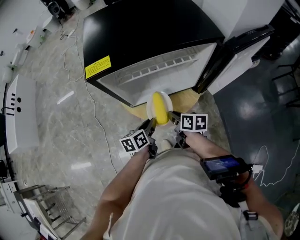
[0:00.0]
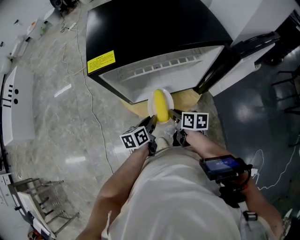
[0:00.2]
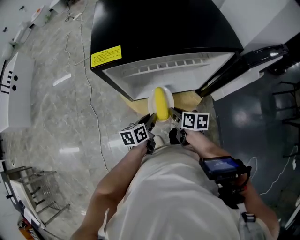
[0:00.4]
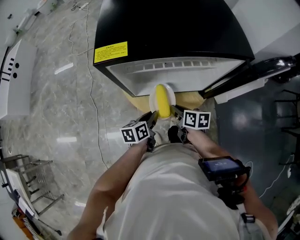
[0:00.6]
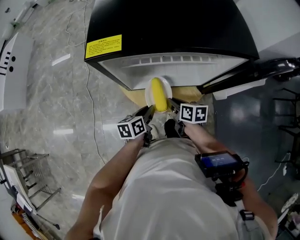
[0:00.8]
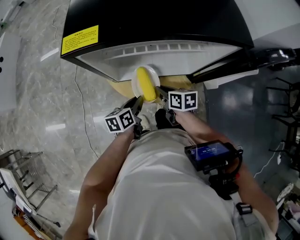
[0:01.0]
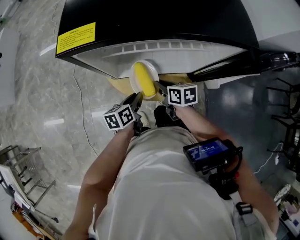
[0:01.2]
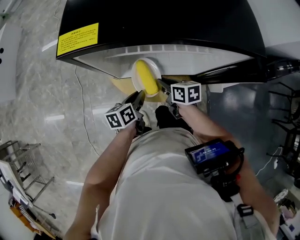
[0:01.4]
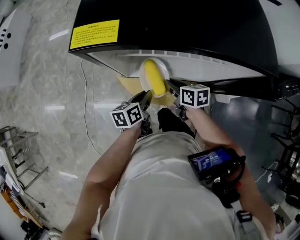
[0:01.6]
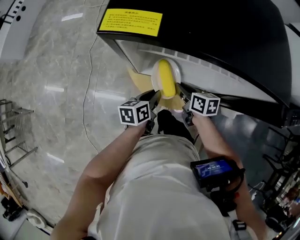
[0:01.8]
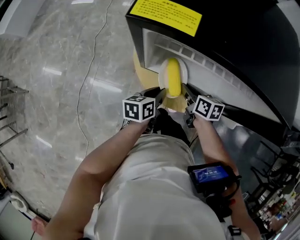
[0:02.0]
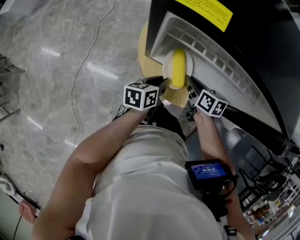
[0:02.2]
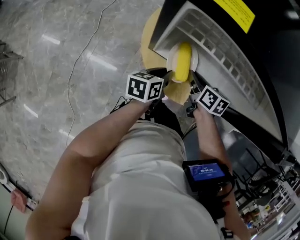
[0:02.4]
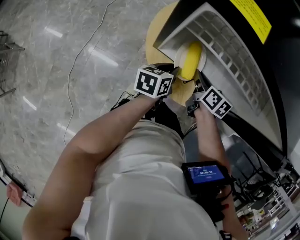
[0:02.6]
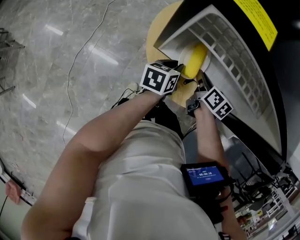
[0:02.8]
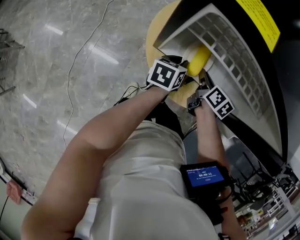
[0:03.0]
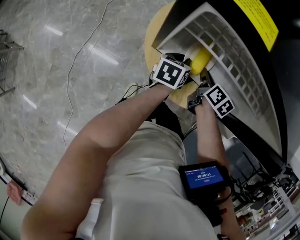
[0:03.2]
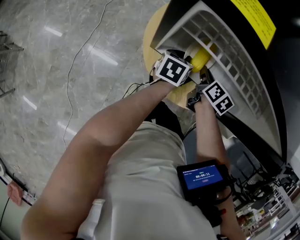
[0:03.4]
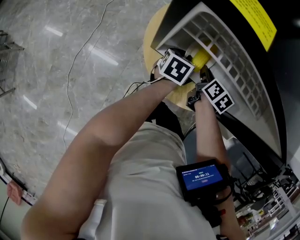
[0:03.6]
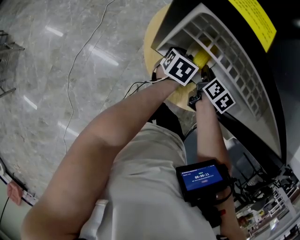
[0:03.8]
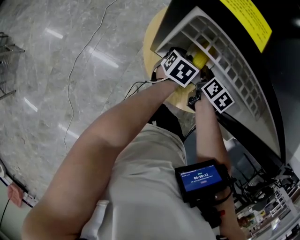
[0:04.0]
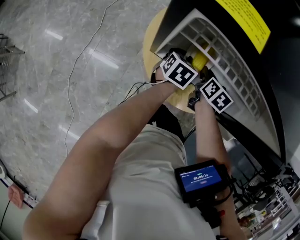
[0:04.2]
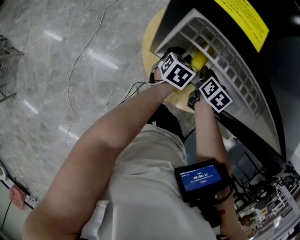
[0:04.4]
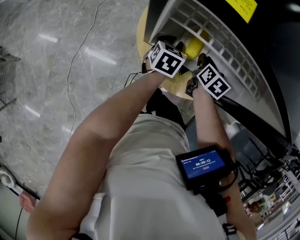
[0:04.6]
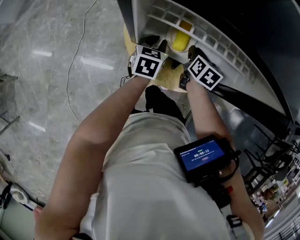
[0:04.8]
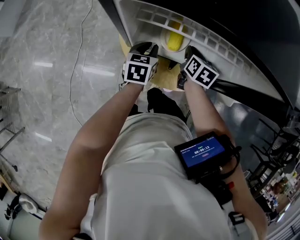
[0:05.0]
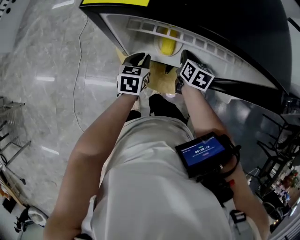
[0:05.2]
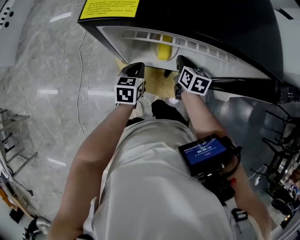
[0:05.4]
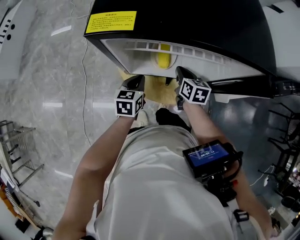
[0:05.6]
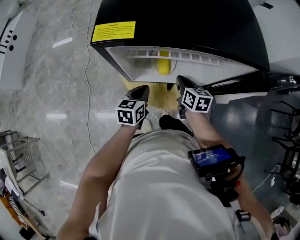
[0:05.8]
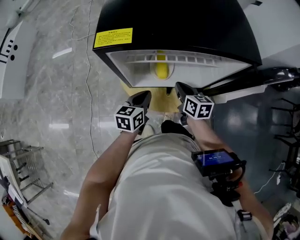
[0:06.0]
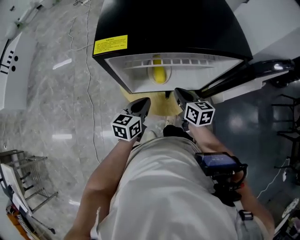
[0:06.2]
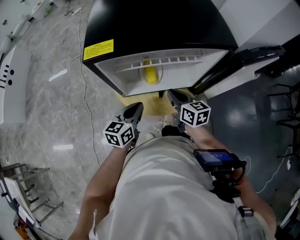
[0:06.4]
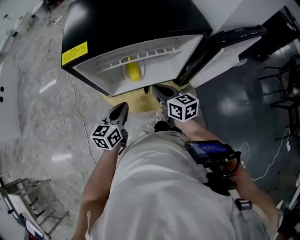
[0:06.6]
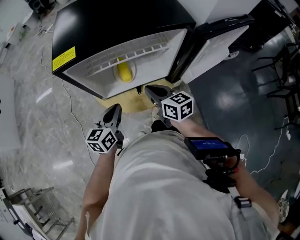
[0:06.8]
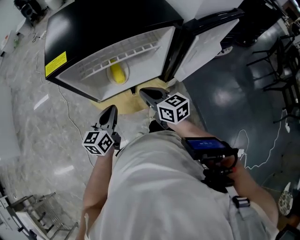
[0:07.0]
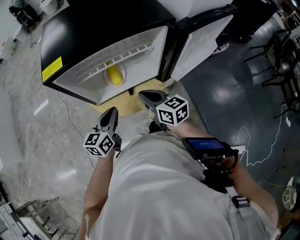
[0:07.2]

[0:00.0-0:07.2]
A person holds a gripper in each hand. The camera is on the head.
0:00.0 to 0:01.4: The left gripper changes place by roughly 5 cm; the right gripper heads forward, covering some 10 cm, and swivels some 20 degrees.
0:01.4 to 0:02.8: Both grippers travel together forward, roughly 5 cm.
0:02.8 to 0:04.4: The right gripper shifts by roughly 5 cm. The left gripper shifts some 5 cm forward, and turns by approximately 30 degrees.
0:04.4 to 0:05.8: Both grippers move backward and upward, about 10 cm. The right gripper closes its fingers.
0:05.8 to 0:07.2: The right gripper travels backward and upward by roughly 15 cm, while the left gripper goes about 10 cm upward and backward, and changes its angle by approximately 20 degrees.

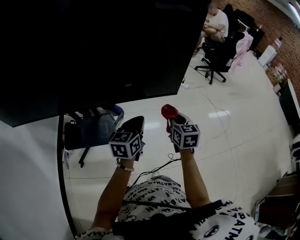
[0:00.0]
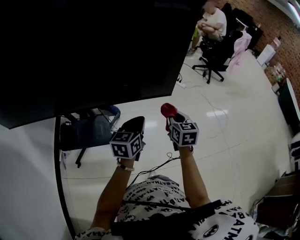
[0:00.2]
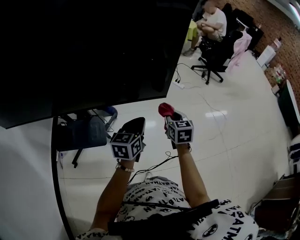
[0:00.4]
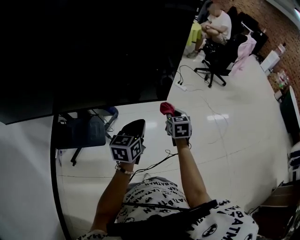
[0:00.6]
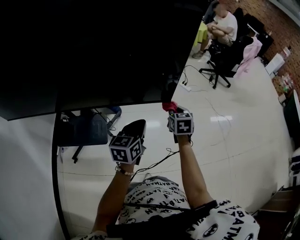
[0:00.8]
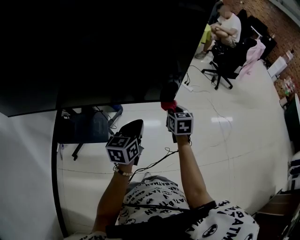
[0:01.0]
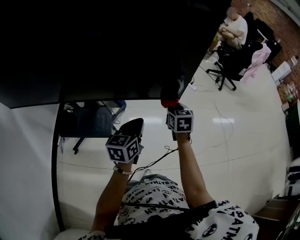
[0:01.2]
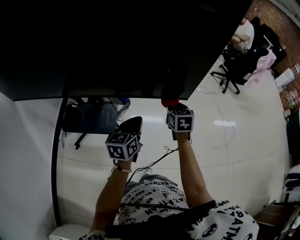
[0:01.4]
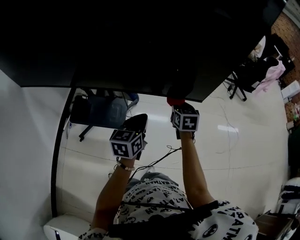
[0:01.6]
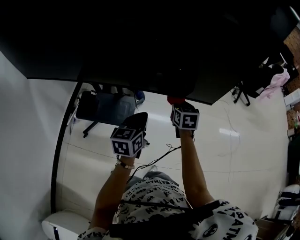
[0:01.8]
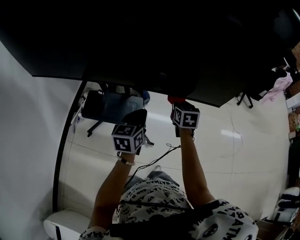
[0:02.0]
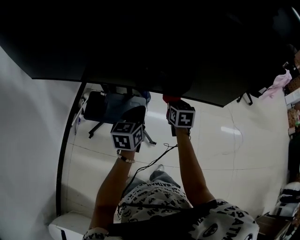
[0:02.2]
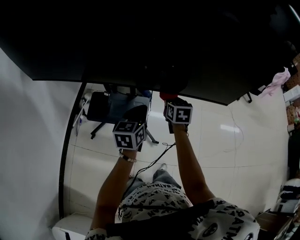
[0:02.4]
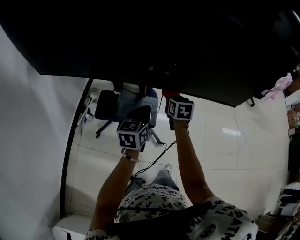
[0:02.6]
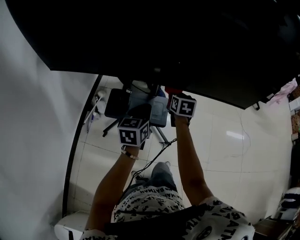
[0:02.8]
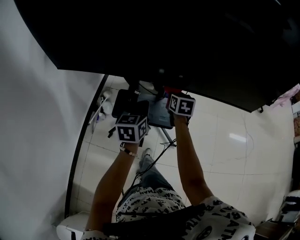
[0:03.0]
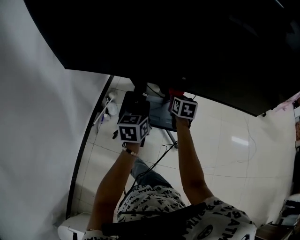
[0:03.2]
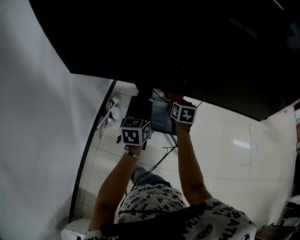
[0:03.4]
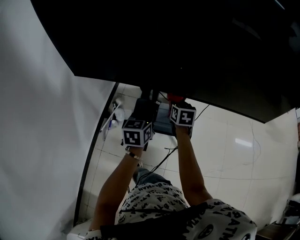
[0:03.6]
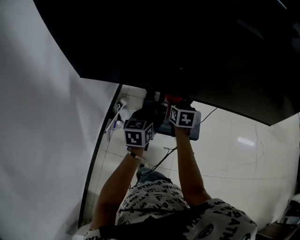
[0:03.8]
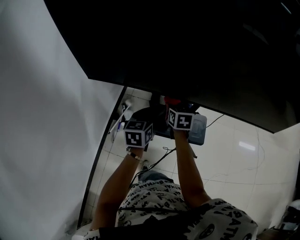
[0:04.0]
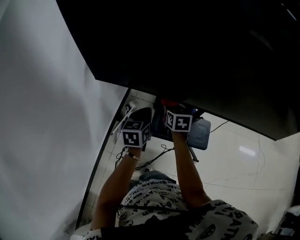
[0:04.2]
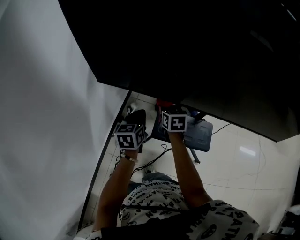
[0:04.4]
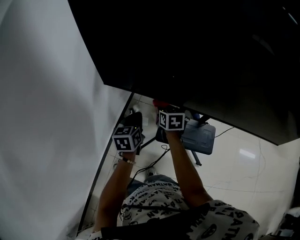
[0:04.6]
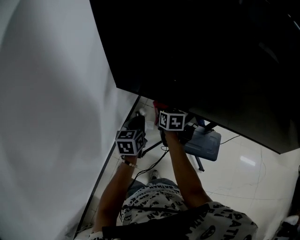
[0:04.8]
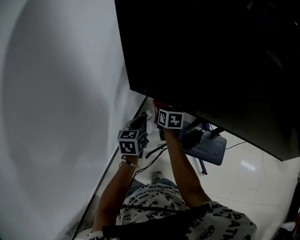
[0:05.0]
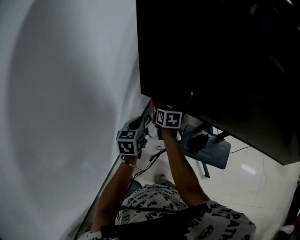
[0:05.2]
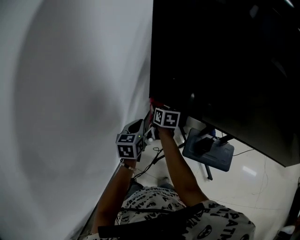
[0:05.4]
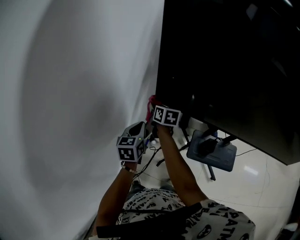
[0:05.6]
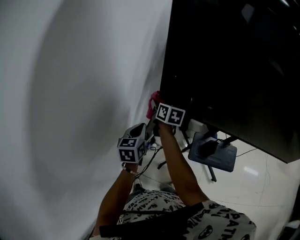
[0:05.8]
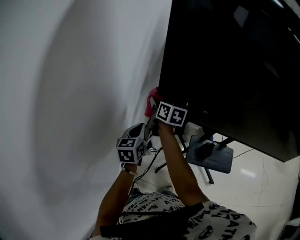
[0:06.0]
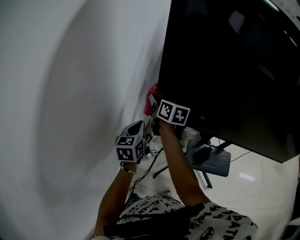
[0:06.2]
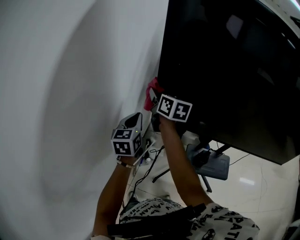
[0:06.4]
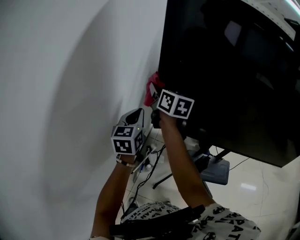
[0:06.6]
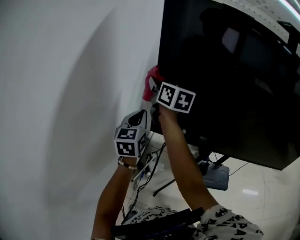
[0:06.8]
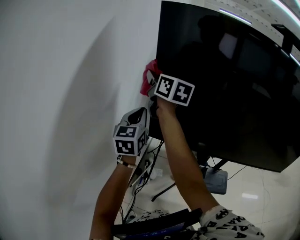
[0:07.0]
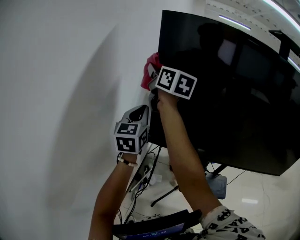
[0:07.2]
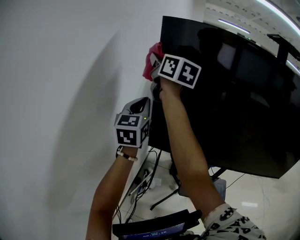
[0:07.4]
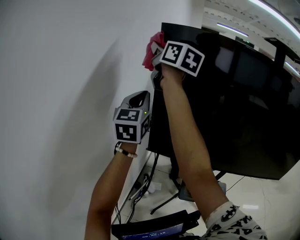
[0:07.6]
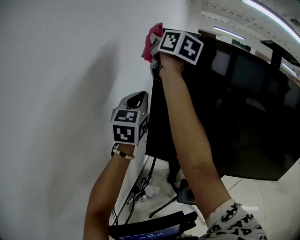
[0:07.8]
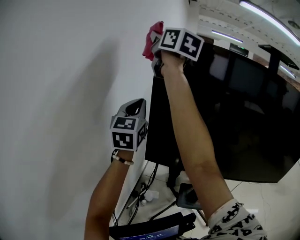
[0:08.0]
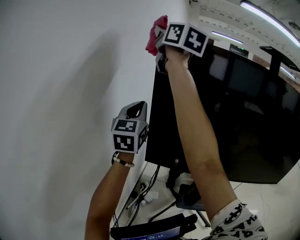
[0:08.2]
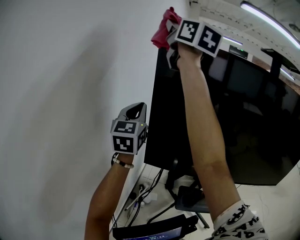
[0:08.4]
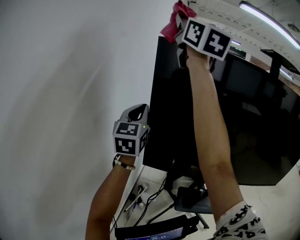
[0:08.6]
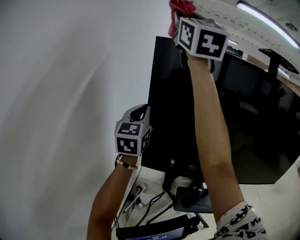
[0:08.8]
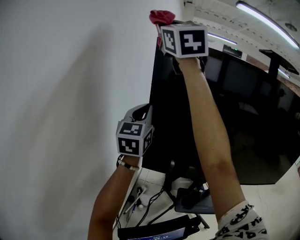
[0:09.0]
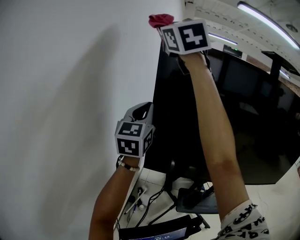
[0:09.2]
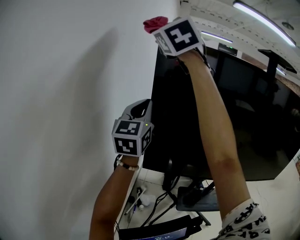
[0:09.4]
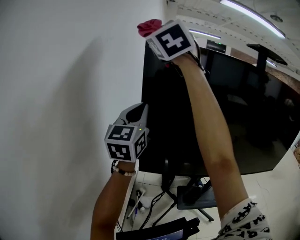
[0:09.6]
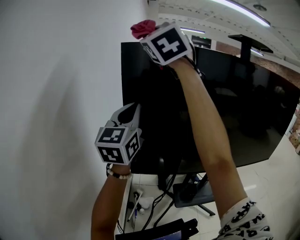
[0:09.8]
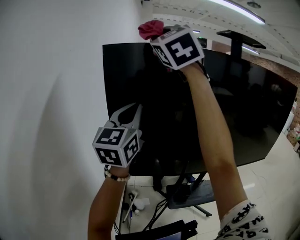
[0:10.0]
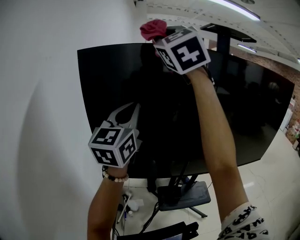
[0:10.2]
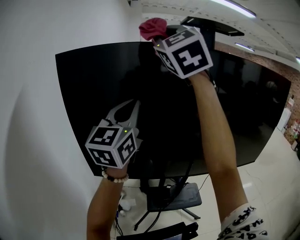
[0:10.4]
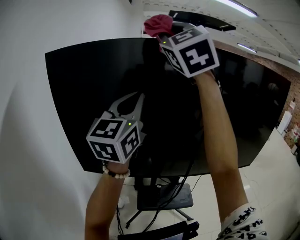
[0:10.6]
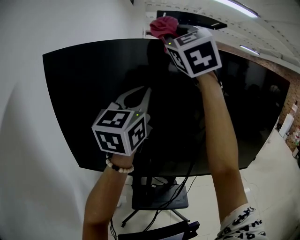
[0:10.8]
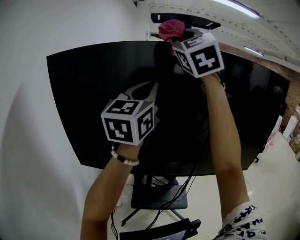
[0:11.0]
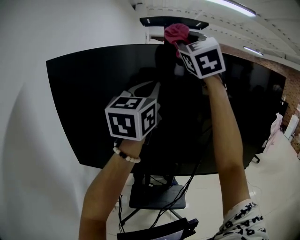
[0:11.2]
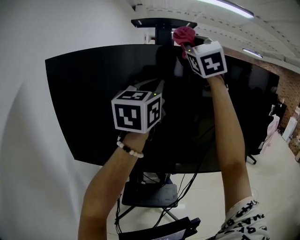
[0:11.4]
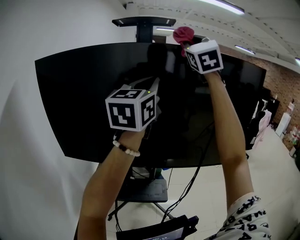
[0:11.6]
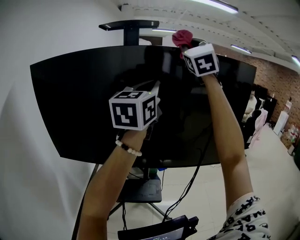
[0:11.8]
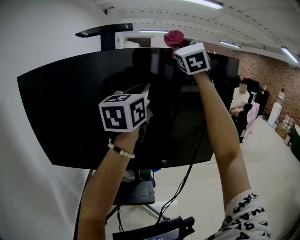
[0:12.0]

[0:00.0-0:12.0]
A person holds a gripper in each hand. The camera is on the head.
0:00.0 to 0:01.6: The left gripper shifts approximately 5 cm to the left; the right gripper shifts about 10 cm forward and to the left.
0:01.6 to 0:03.0: Both grippers travel together to the left, approximately 35 cm.
0:03.0 to 0:04.4: Both grippers travel together to the left, approximately 30 cm.
0:04.4 to 0:06.0: The right gripper heads to the left and forward, covering approximately 35 cm, and rotates approximately 20 degrees. Meanwhile the left gripper moves to the left, some 25 cm.
0:06.0 to 0:07.6: The grippers both shift upward by some 40 cm. The right gripper tilts its fingers roughly 30 degrees upward, while the left gripper points its fingers some 30 degrees further upward.
0:07.6 to 0:09.0: The right gripper goes some 15 cm upward, and rotates around the line of its fingers by some 50 degrees, counterclockwise from behind.
0:09.0 to 0:10.4: The grippers both shift to the right by about 30 cm. The left gripper swivels some 20 degrees. Meanwhile the right gripper changes its angle by approximately 30 degrees.
0:10.4 to 0:12.0: The two grippers travel together, to the right, about 50 cm.

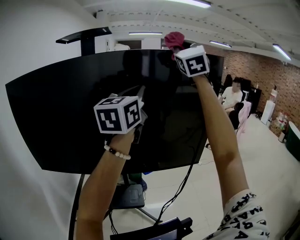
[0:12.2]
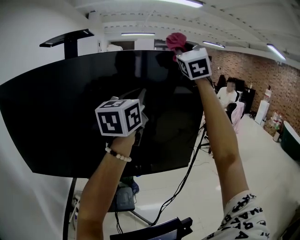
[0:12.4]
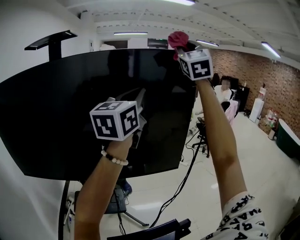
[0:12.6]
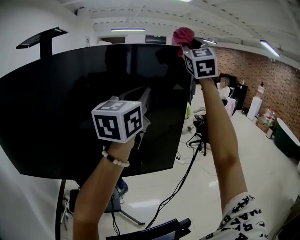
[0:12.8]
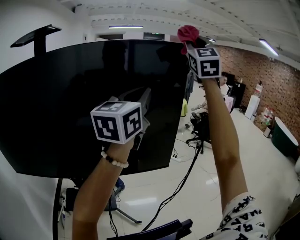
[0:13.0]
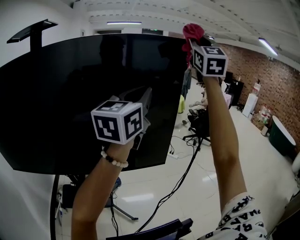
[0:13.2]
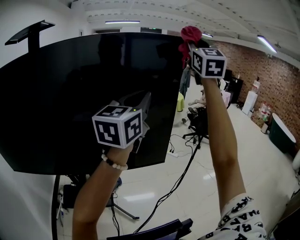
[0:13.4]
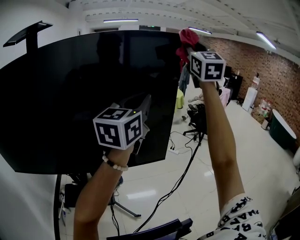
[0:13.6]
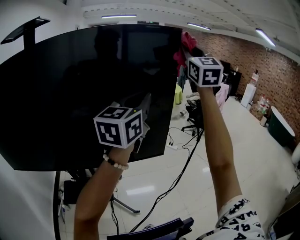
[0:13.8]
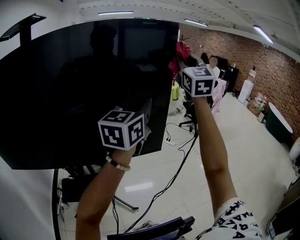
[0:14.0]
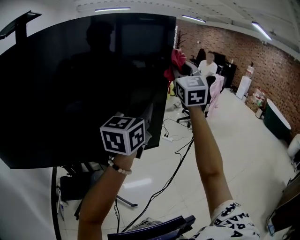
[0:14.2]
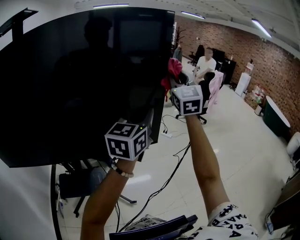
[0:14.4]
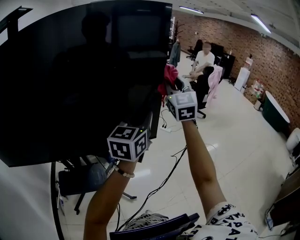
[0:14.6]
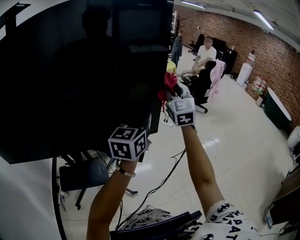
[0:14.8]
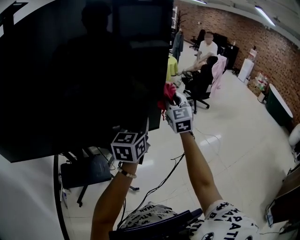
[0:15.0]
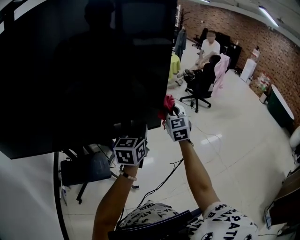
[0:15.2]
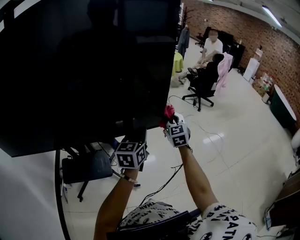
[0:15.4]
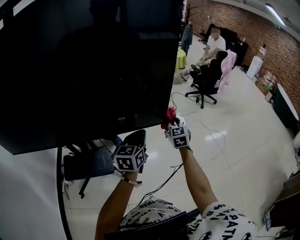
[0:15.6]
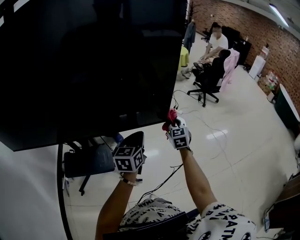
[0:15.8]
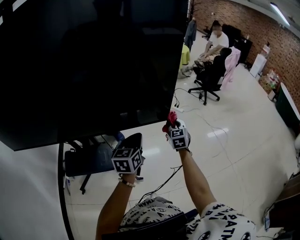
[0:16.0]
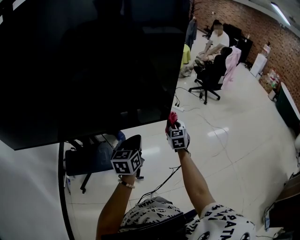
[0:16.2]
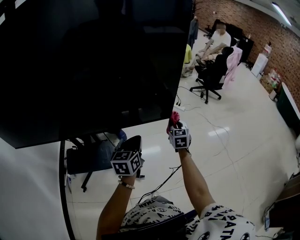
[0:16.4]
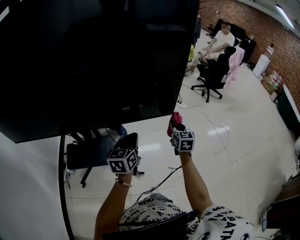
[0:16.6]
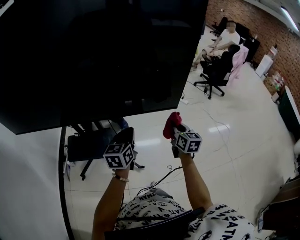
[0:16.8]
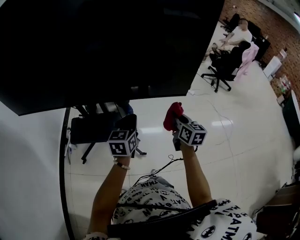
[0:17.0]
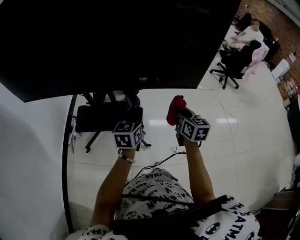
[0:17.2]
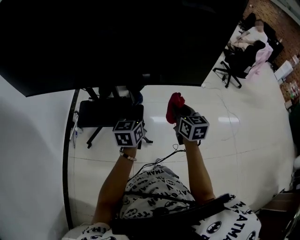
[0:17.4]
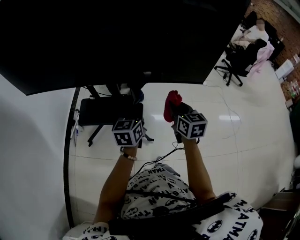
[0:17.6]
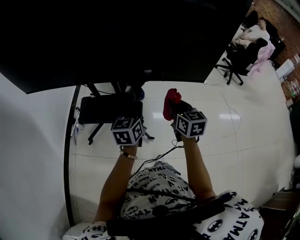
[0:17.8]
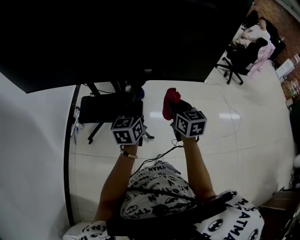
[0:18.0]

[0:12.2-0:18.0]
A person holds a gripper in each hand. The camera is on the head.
0:12.2 to 0:13.6: The grippers both shift to the right by some 25 cm.
0:13.6 to 0:15.0: The right gripper is displaced downward by some 40 cm, and swivels about 20 degrees, while the left gripper goes approximately 25 cm downward.
0:15.0 to 0:16.6: The left gripper heads downward and to the left, covering approximately 20 cm; the right gripper heads downward, covering some 25 cm, and swivels about 30 degrees.
0:16.6 to 0:18.0: The right gripper goes about 20 cm to the left and backward, and rotates some 20 degrees. The left gripper travels to the left by about 10 cm.
